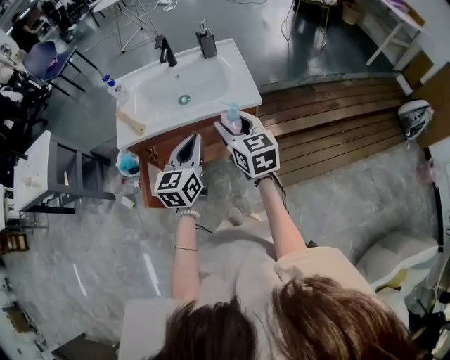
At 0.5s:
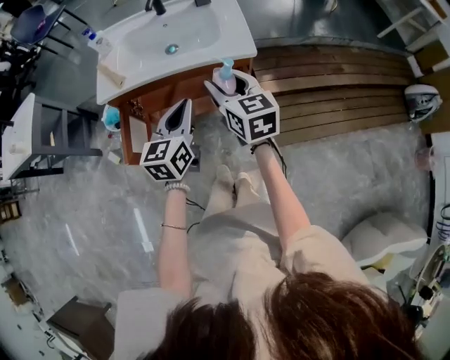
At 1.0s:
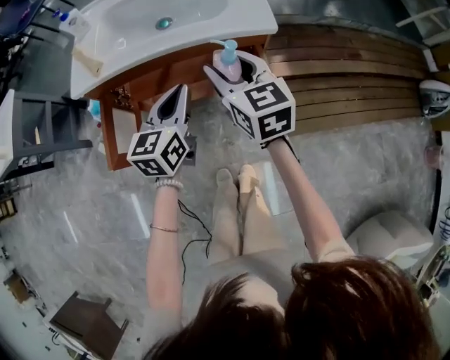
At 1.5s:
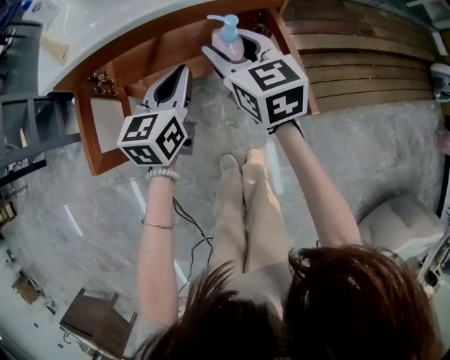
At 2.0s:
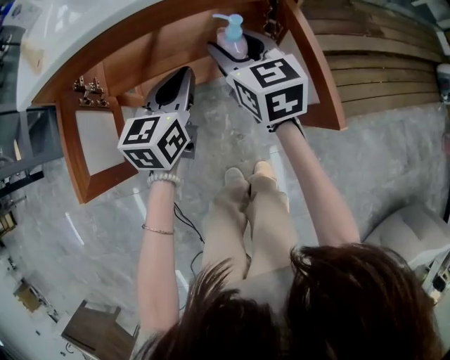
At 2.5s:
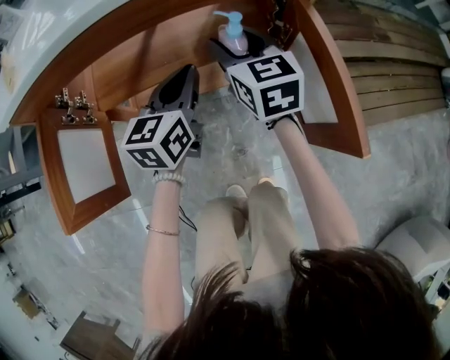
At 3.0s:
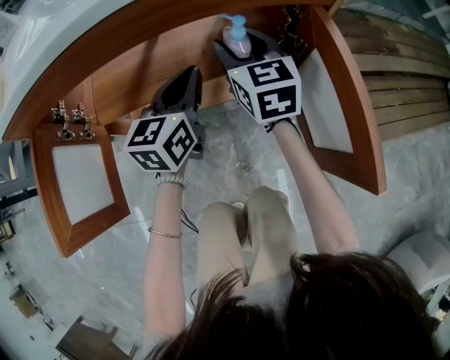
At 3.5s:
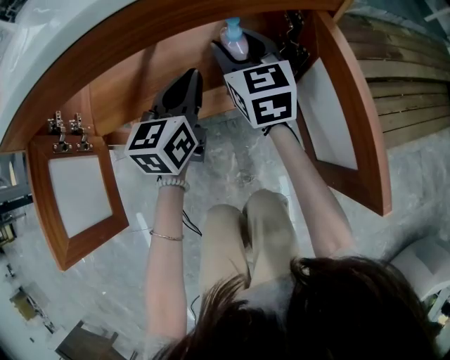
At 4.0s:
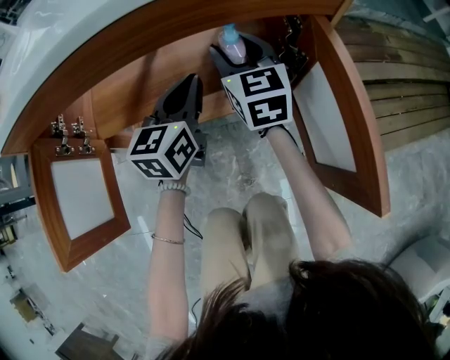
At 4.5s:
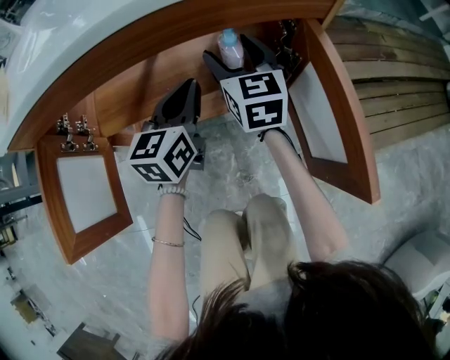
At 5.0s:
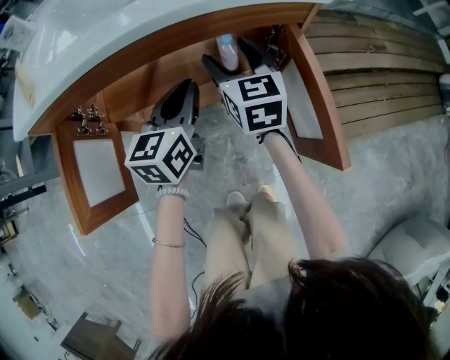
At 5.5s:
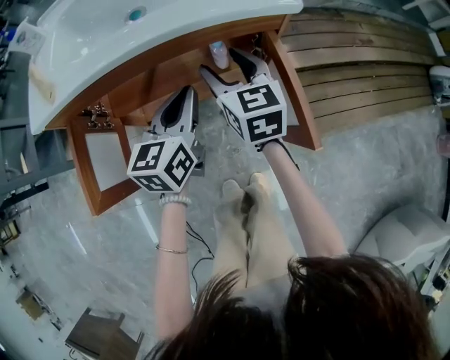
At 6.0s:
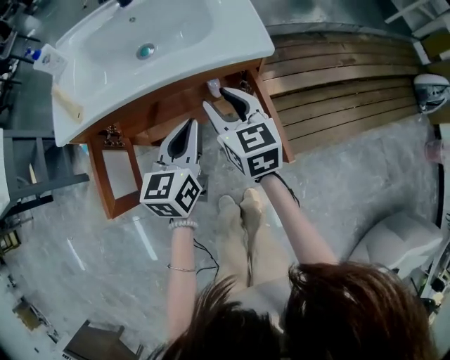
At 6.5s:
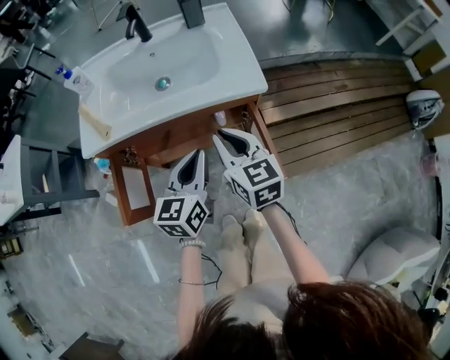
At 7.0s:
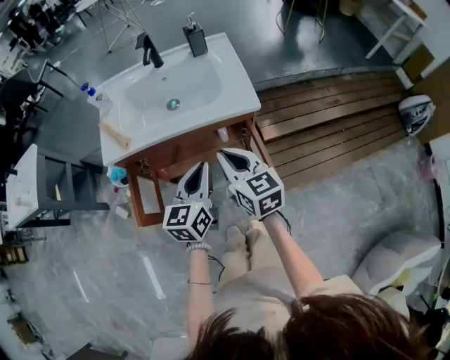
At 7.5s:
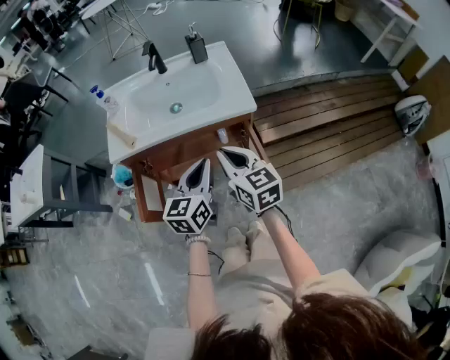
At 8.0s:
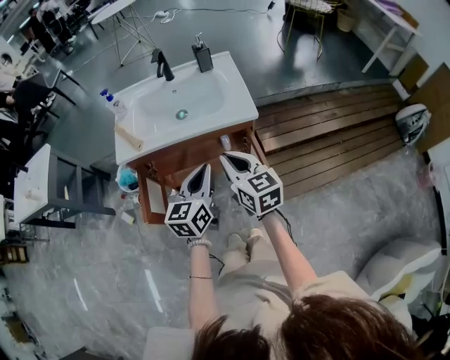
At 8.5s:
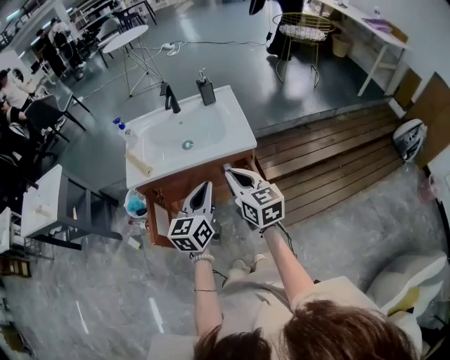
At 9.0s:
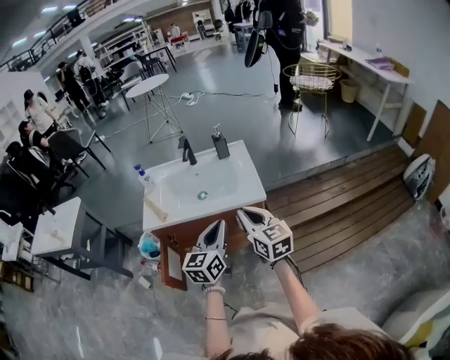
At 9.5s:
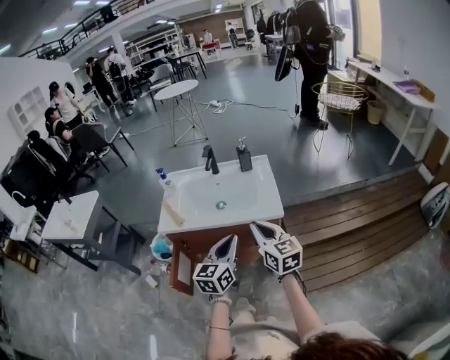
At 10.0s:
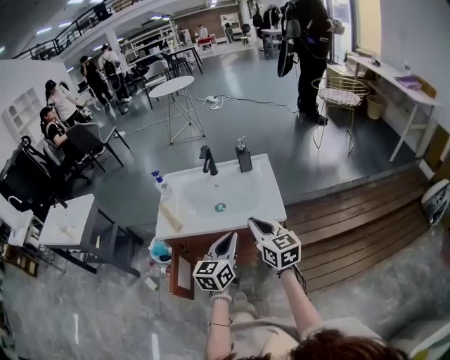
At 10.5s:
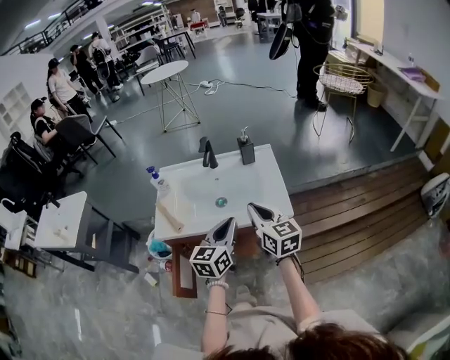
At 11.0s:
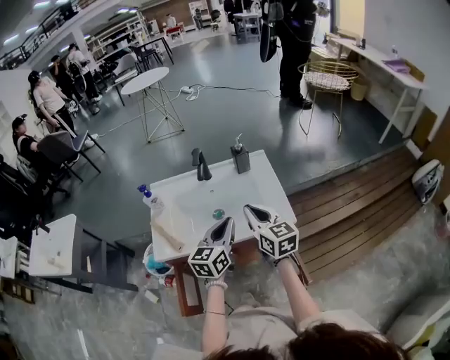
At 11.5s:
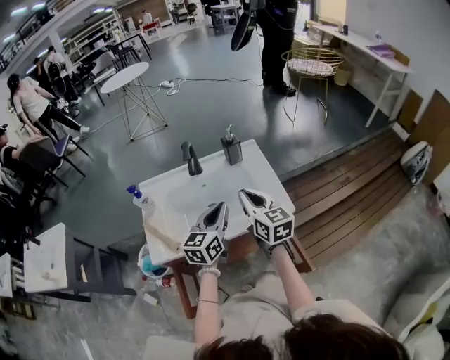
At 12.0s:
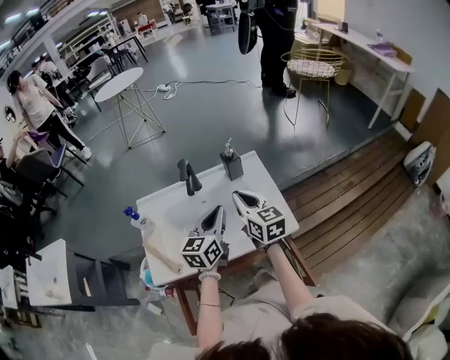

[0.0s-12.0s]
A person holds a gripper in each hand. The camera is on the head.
0.0s to 2.0s: The grippers both shift downward by some 30 cm.
2.0s to 4.0s: Both grippers travel together forward and downward, roughly 15 cm.
4.0s to 6.0s: The grippers both shift upward and backward by about 25 cm.
6.0s to 8.0s: The two grippers go approximately 20 cm upward and backward. The right gripper closes.
8.0s to 10.0s: The right gripper moves forward and upward, roughly 10 cm; the left gripper goes approximately 5 cm forward.
10.0s to 12.0s: Both grippers move forward, some 25 cm.

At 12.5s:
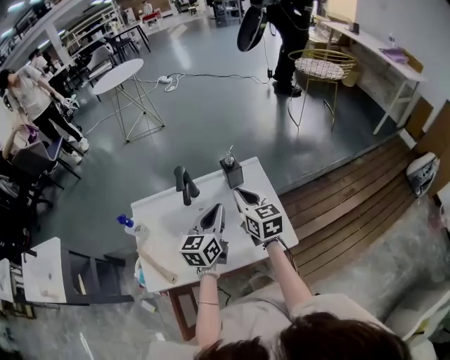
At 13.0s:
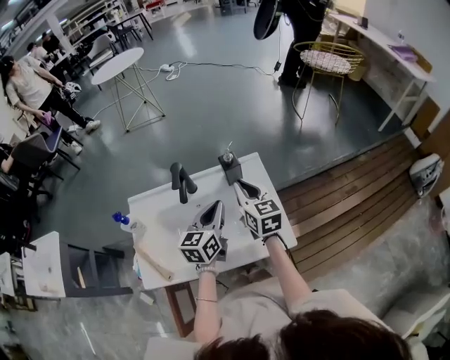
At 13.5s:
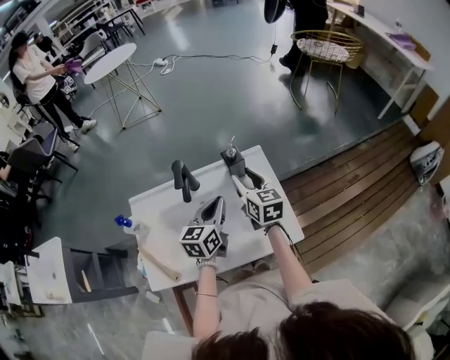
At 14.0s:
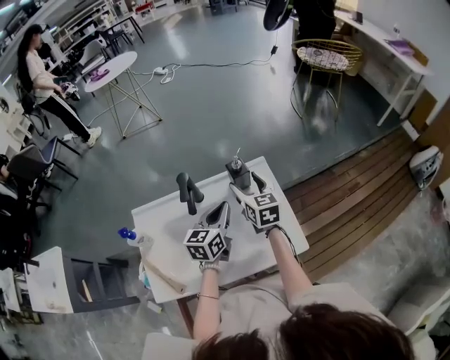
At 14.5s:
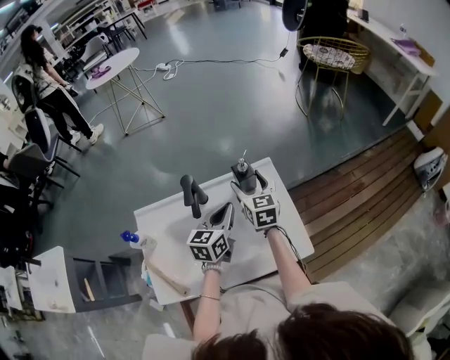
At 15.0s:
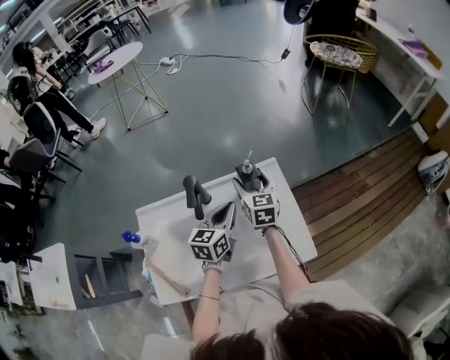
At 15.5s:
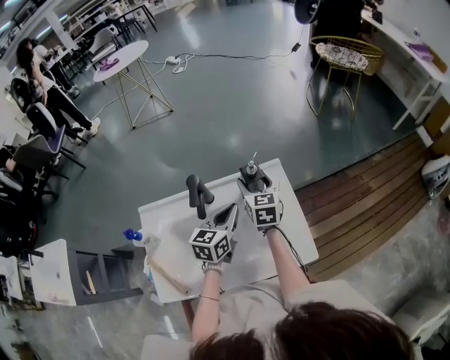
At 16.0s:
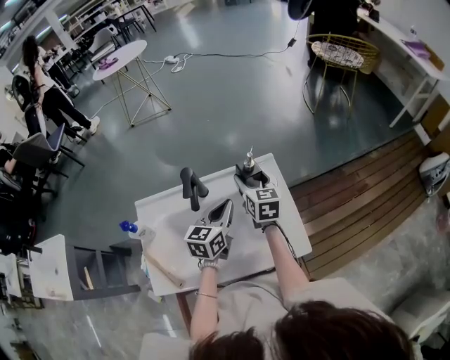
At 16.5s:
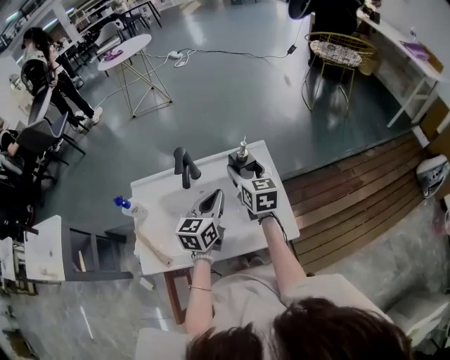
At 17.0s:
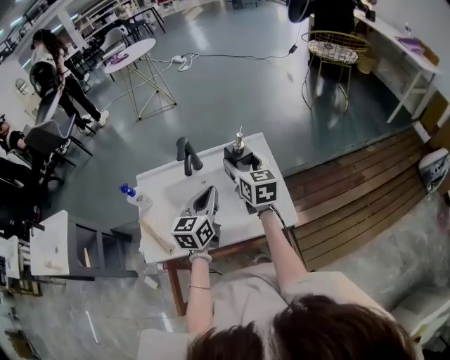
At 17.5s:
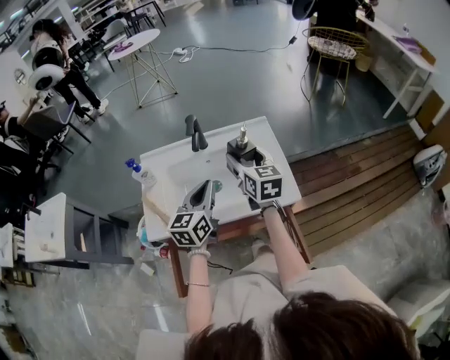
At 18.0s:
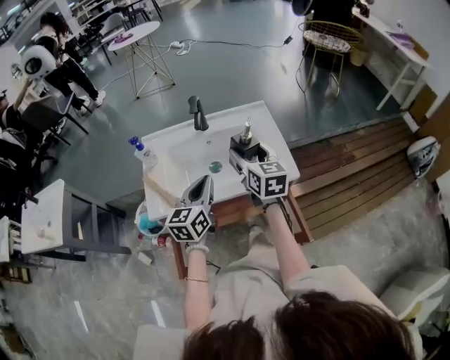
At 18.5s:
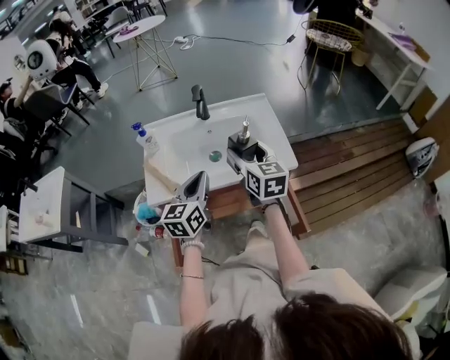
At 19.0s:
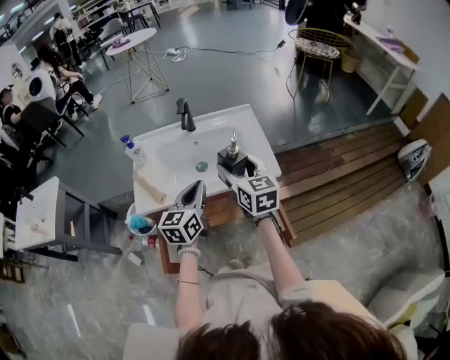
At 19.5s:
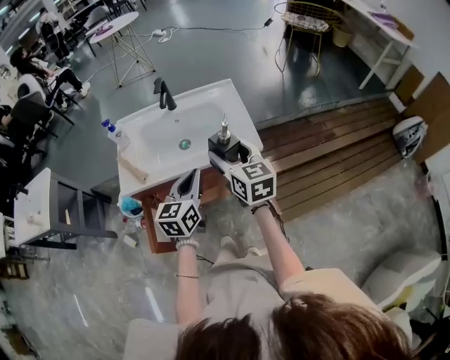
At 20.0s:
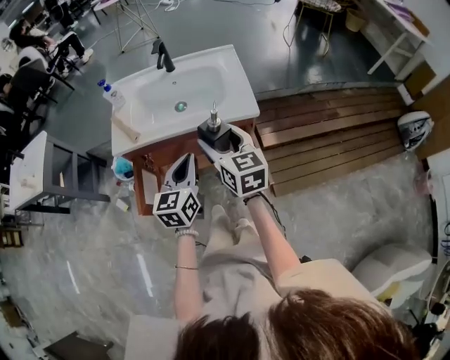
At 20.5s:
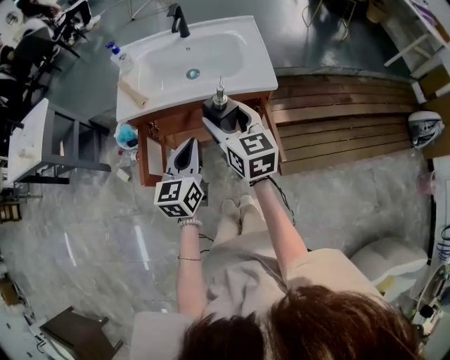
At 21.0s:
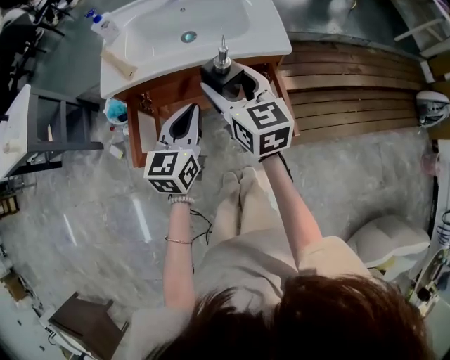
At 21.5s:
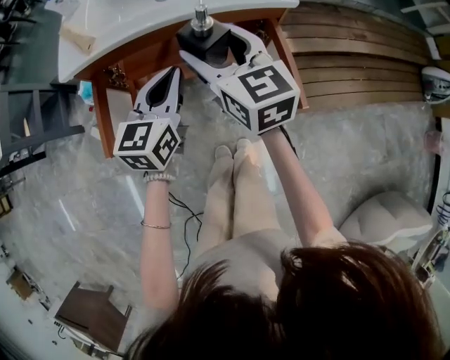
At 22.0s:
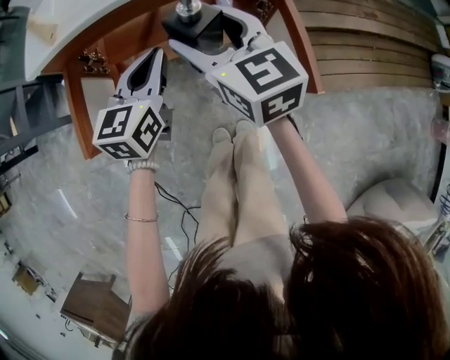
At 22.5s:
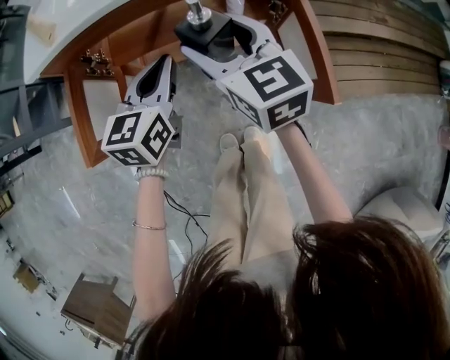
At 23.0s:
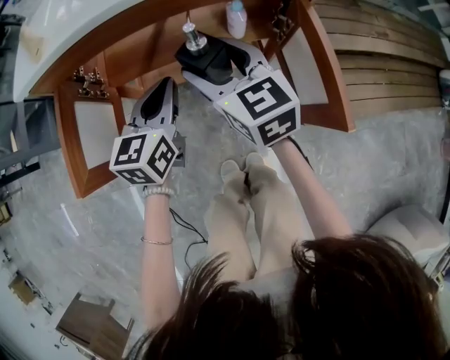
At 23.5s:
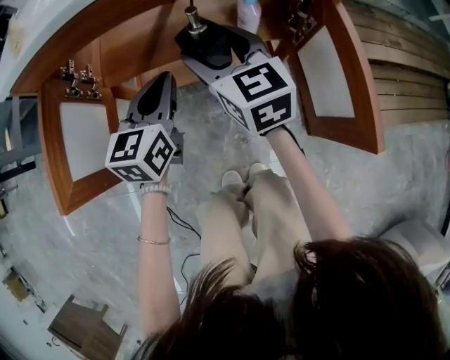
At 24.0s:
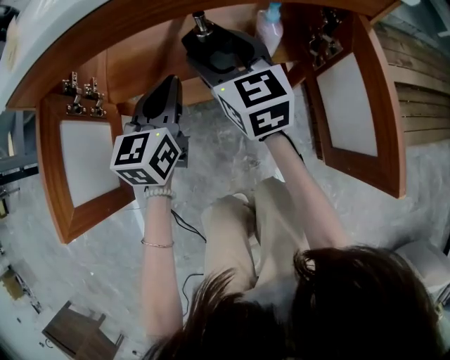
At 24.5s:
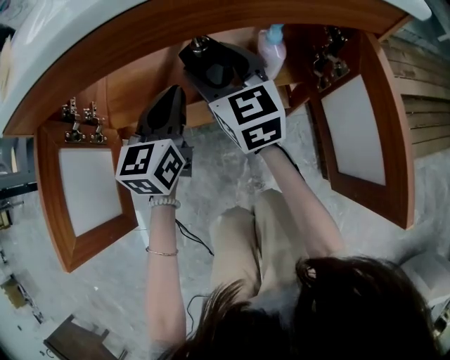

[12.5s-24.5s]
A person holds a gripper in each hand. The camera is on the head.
12.5s to 14.5s: The two grippers go about 10 cm forward and downward. The right gripper opens its fingers.
14.5s to 16.5s: The left gripper ends up about 5 cm from where it was, while the right gripper changes place by some 5 cm.
16.5s to 18.5s: The left gripper moves backward and to the left, some 25 cm; the right gripper moves backward, approximately 25 cm.
18.5s to 20.5s: Both grippers move backward, approximately 15 cm.
20.5s to 22.5s: The two grippers go some 20 cm downward.
22.5s to 24.5s: Both grippers move downward and forward, approximately 20 cm.

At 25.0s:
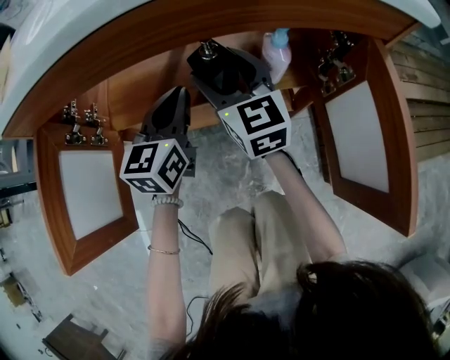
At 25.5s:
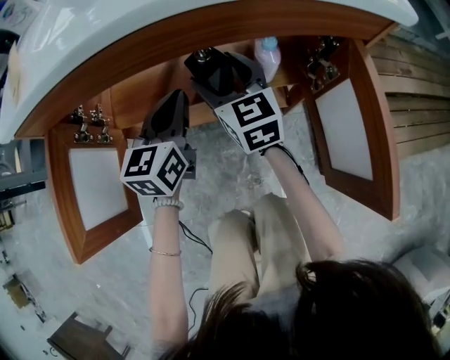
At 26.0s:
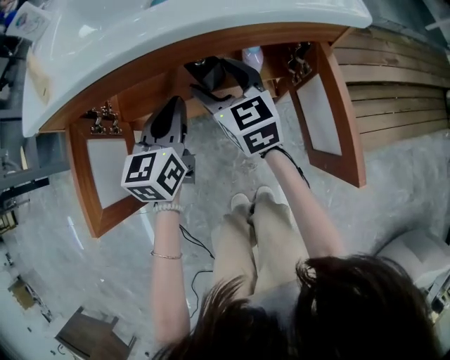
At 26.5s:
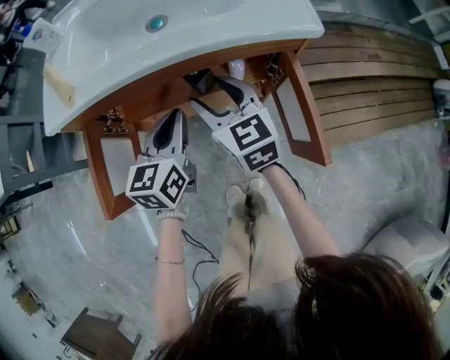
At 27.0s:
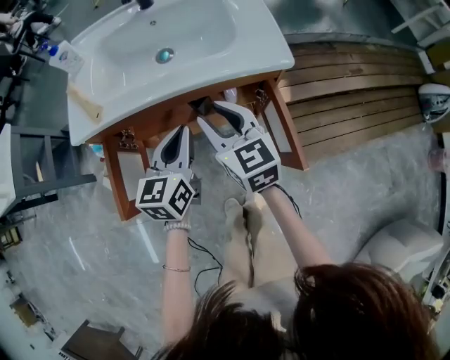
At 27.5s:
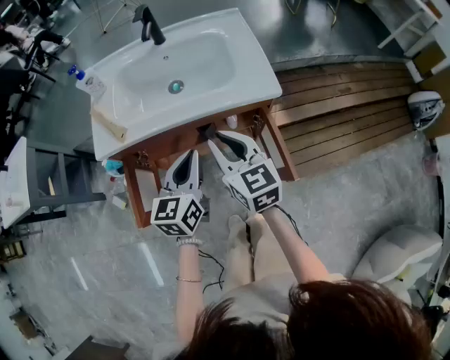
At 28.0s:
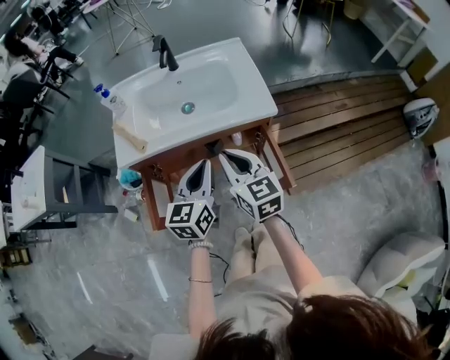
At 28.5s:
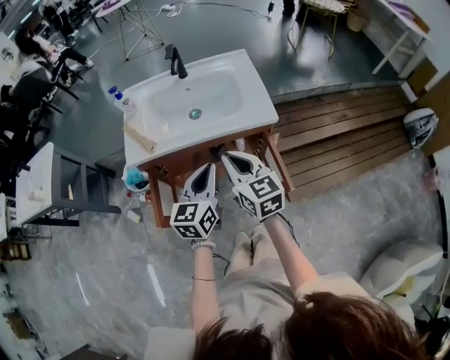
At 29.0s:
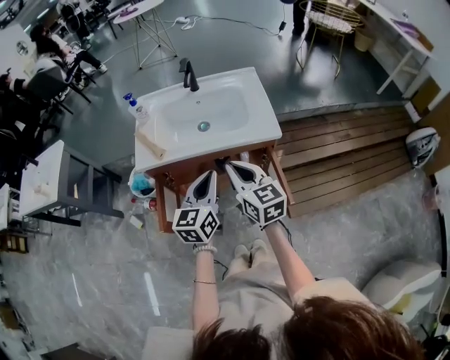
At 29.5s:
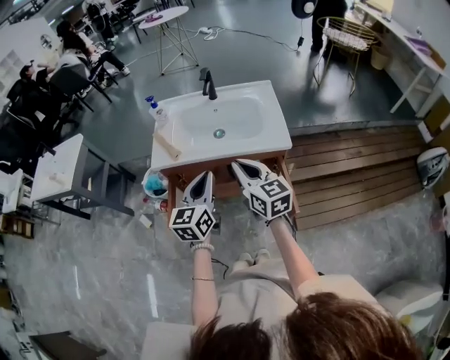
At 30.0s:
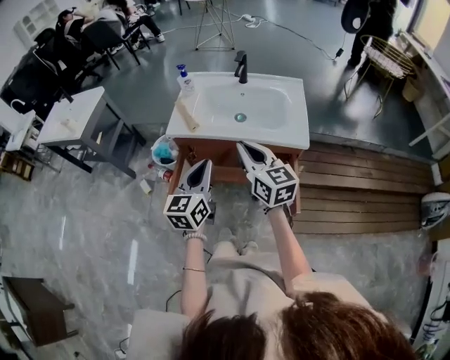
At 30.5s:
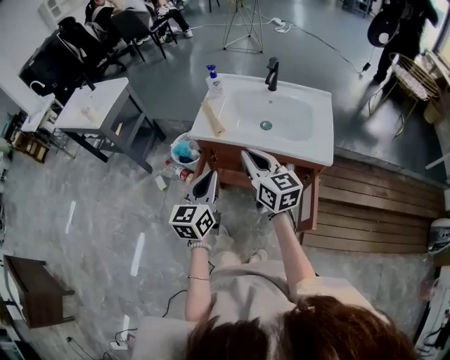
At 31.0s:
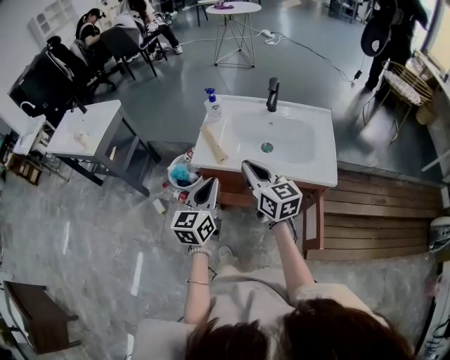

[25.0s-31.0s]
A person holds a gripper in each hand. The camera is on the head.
25.0s to 27.0s: Both grippers travel together upward and backward, roughly 25 cm. The right gripper closes.
27.0s to 29.0s: The left gripper travels upward by some 15 cm. The right gripper heads upward and backward, covering approximately 15 cm, and closes.
29.0s to 31.0s: The right gripper moves to the left and forward, some 15 cm, while the left gripper heads to the left, covering approximately 15 cm.
